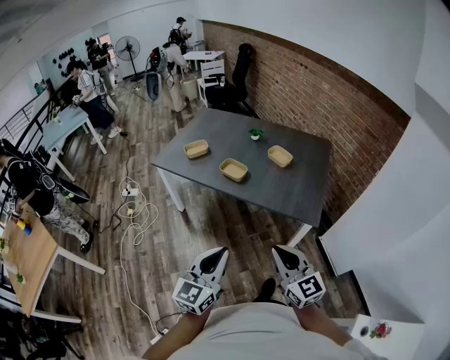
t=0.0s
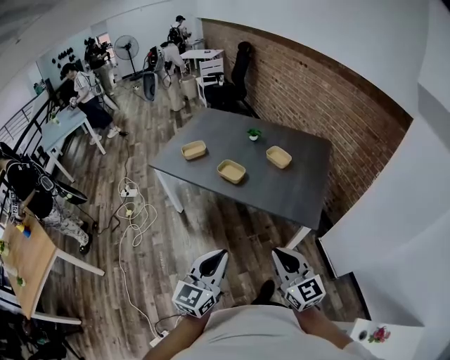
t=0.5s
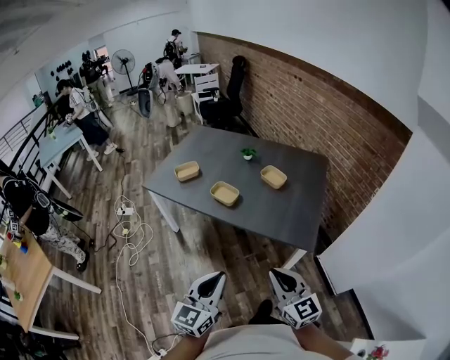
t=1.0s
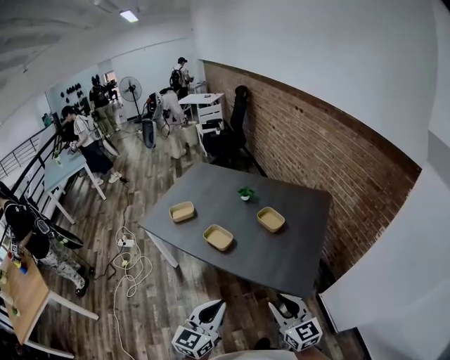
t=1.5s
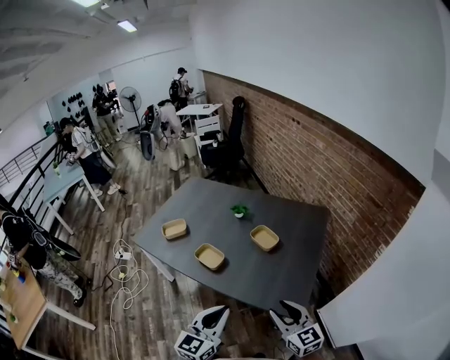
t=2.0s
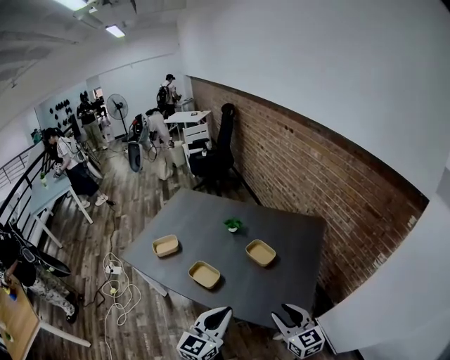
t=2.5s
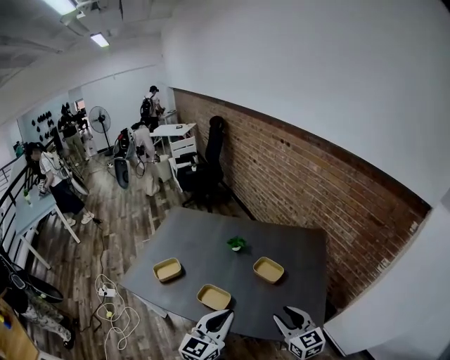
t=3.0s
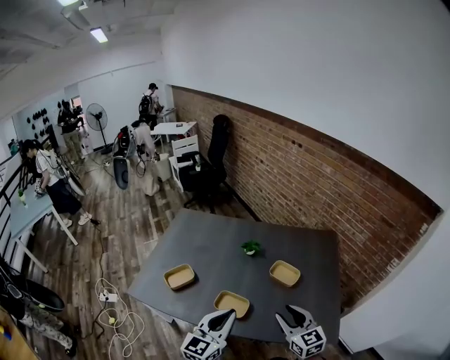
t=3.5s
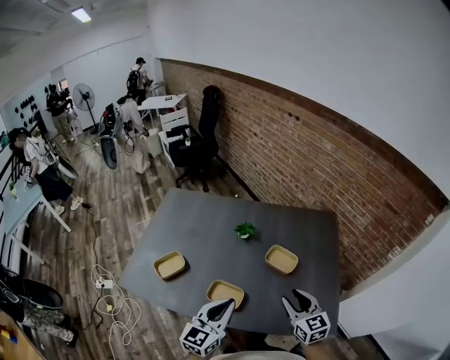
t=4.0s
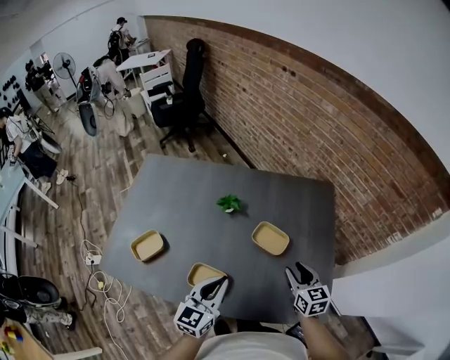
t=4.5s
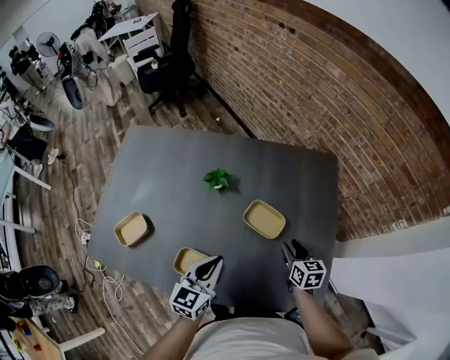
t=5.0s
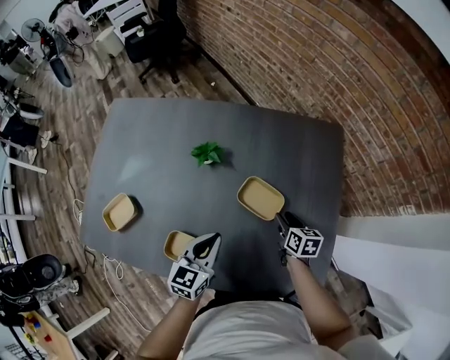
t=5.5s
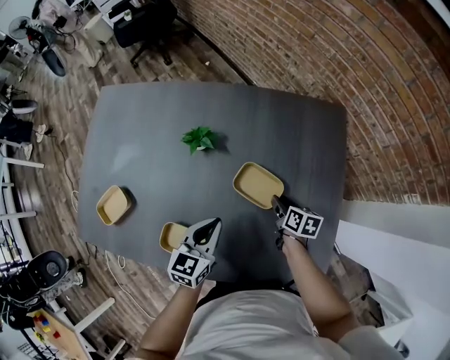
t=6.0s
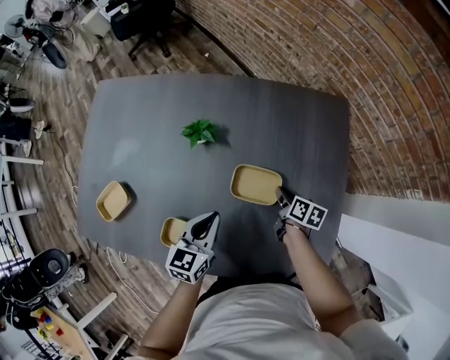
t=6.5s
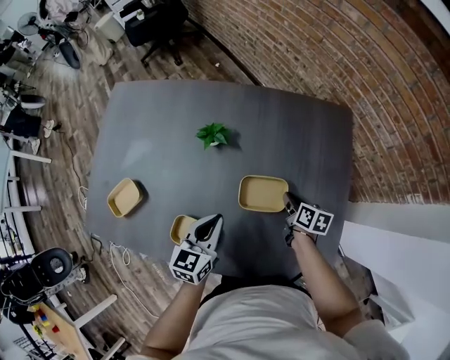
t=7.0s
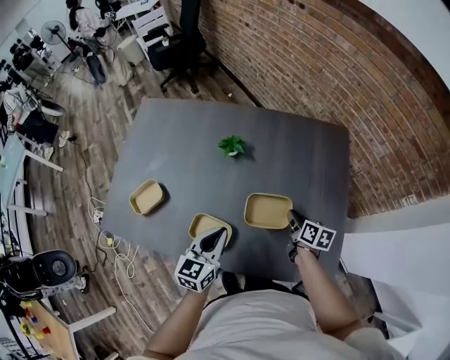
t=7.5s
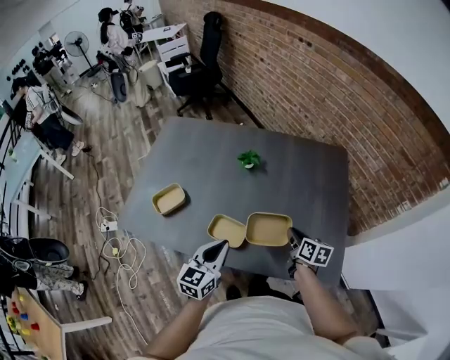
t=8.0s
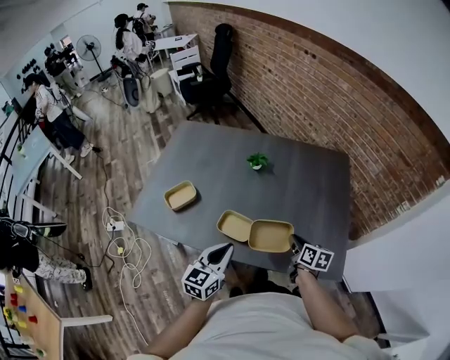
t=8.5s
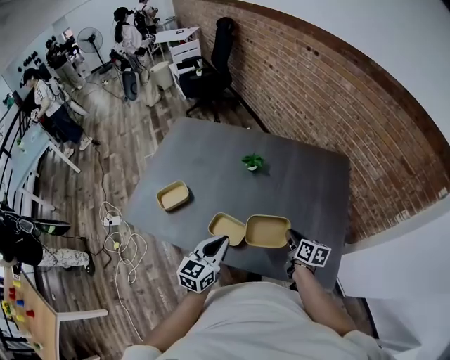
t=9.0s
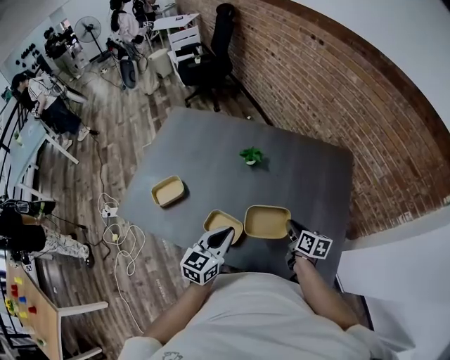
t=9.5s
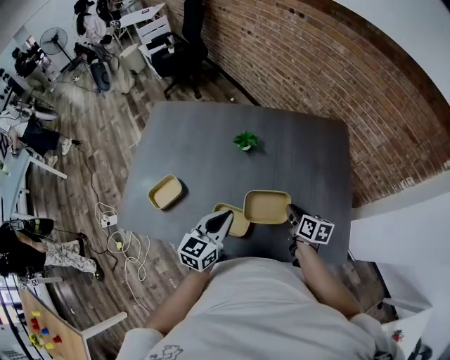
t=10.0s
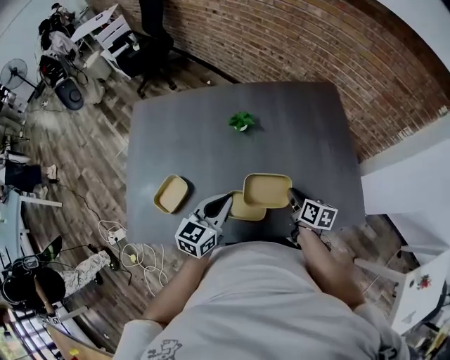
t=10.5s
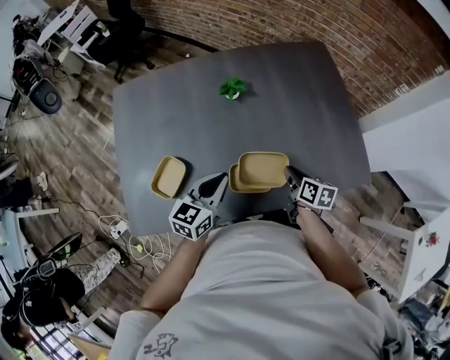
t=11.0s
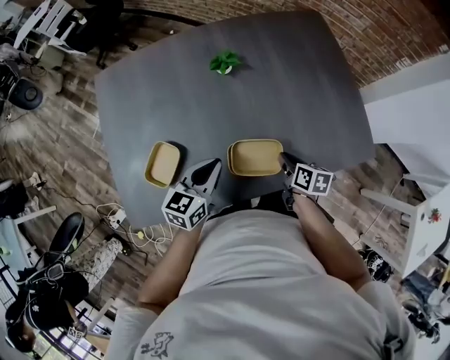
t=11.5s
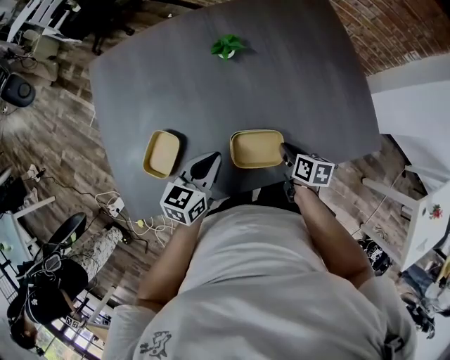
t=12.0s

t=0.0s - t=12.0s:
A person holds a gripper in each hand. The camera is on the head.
t=0.0s - t=2.0s: The two grippers go roughly 30 cm forward and to the right. The right gripper opens.
t=2.0s - t=4.0s: The two grippers go roughly 30 cm forward and to the left. The right gripper changes its angle by about 20 degrees.
t=4.0s - t=6.0s: The left gripper goes about 30 cm downward, forward and to the right, and turns by roughly 20 degrees. Meanwhile the right gripper moves downward and forward, some 35 cm, and rolls clockwise, seen from behind, by about 50 degrees.
t=6.0s - t=8.0s: The left gripper moves backward, to the left and upward, about 25 cm. The right gripper travels backward, upward and to the left by roughly 25 cm, and closes.
t=8.0s - t=10.0s: The left gripper moves forward, roughly 10 cm.
t=10.0s - t=12.0s: The left gripper shifts about 15 cm to the left and downward, and swivels some 30 degrees; the right gripper shifts about 20 cm backward, downward and to the left, and changes its angle by approximately 20 degrees.

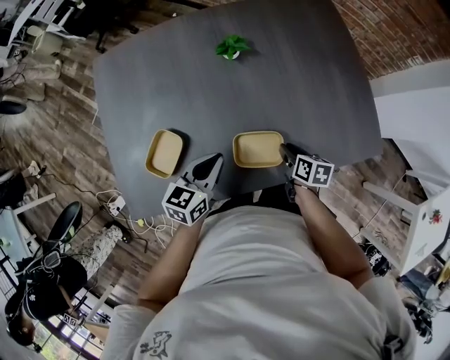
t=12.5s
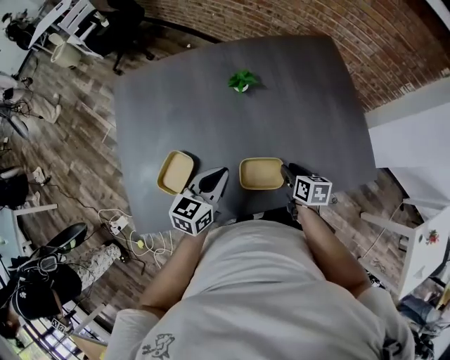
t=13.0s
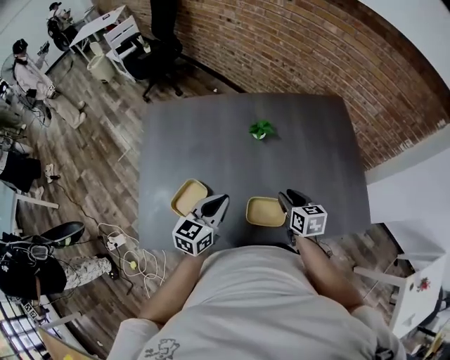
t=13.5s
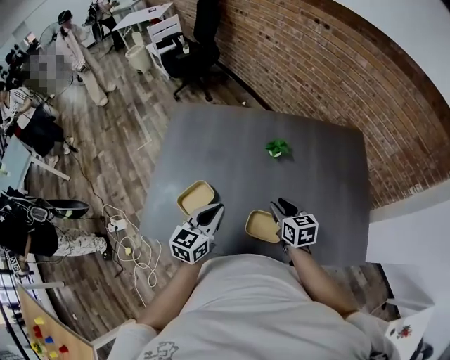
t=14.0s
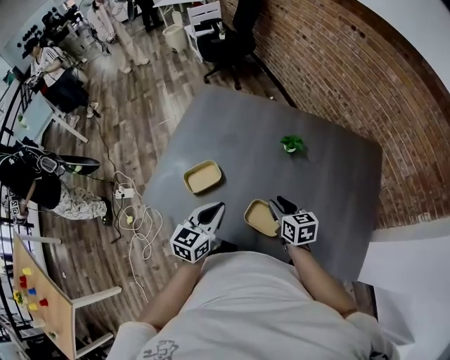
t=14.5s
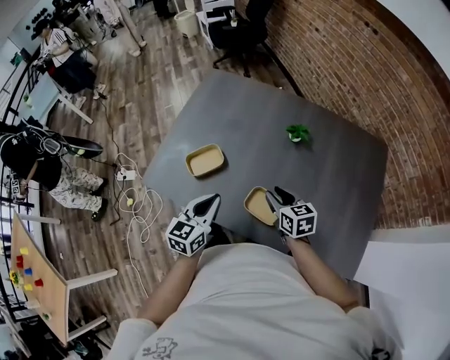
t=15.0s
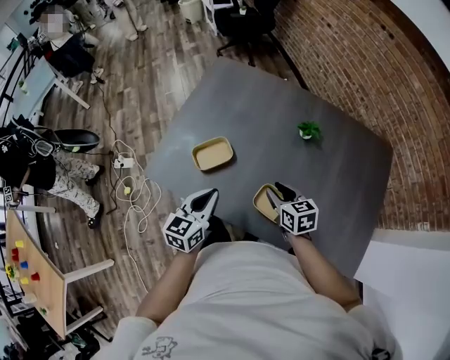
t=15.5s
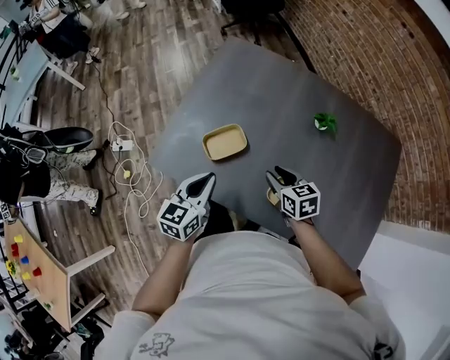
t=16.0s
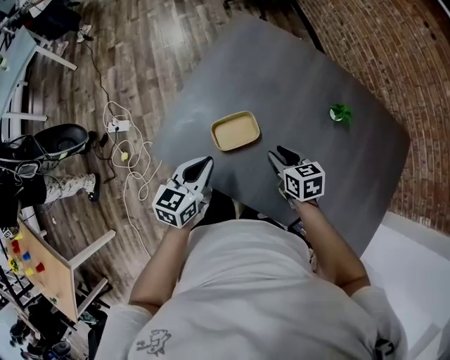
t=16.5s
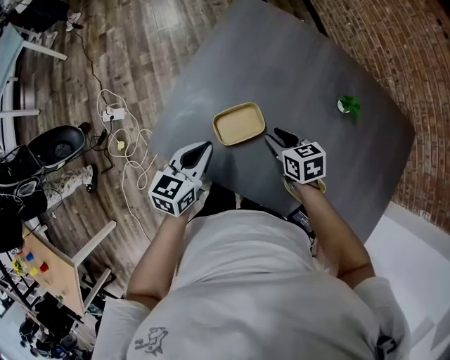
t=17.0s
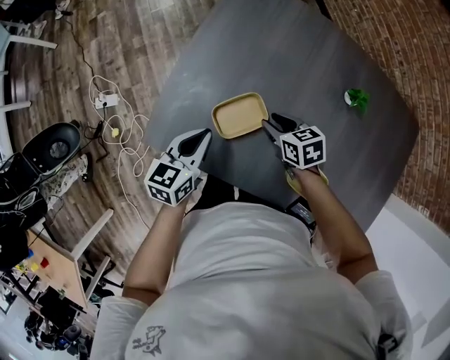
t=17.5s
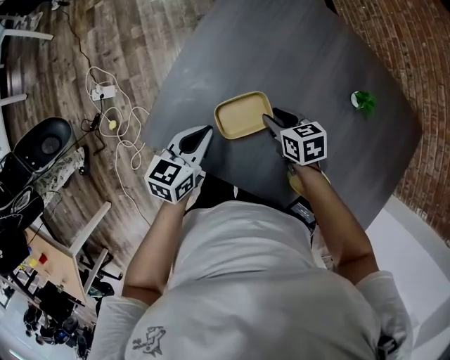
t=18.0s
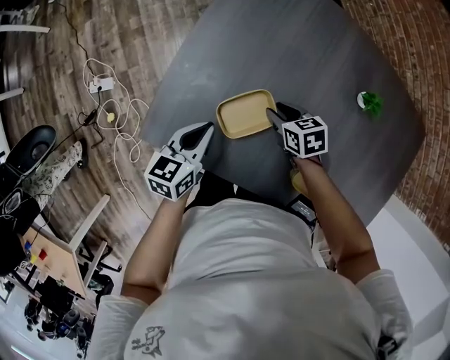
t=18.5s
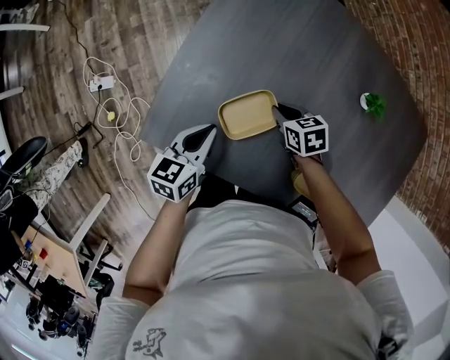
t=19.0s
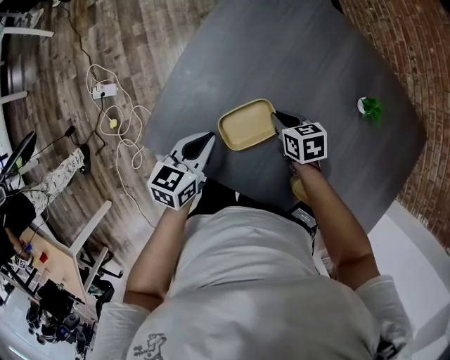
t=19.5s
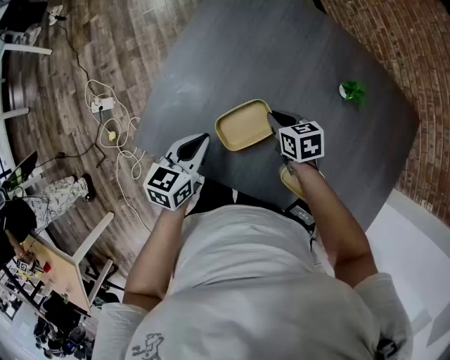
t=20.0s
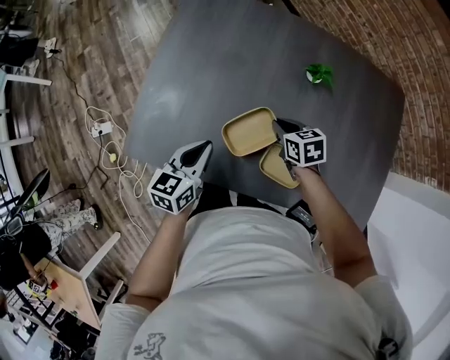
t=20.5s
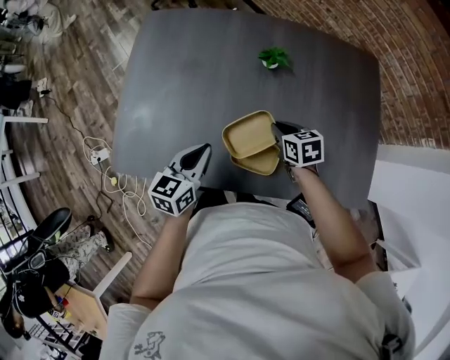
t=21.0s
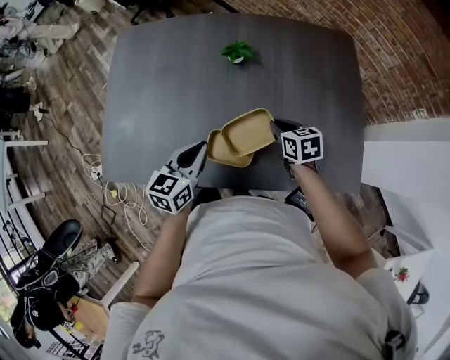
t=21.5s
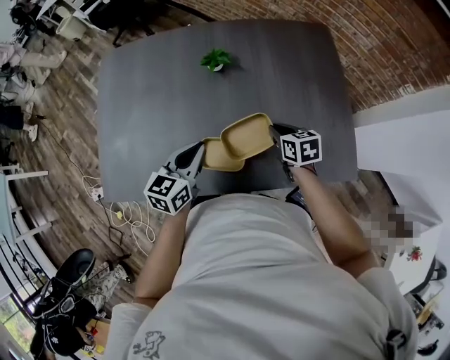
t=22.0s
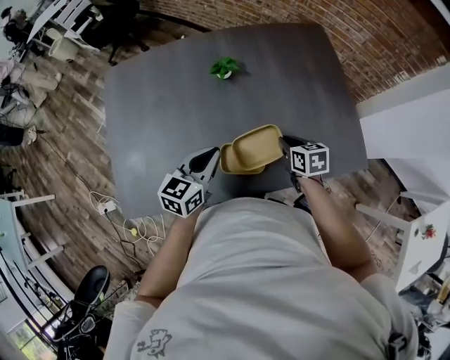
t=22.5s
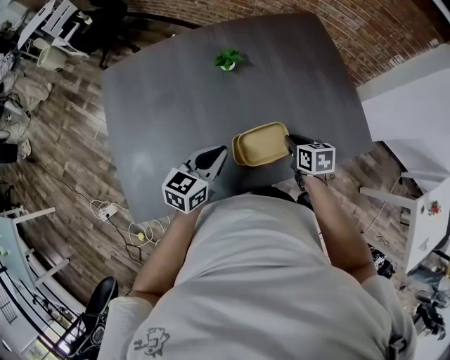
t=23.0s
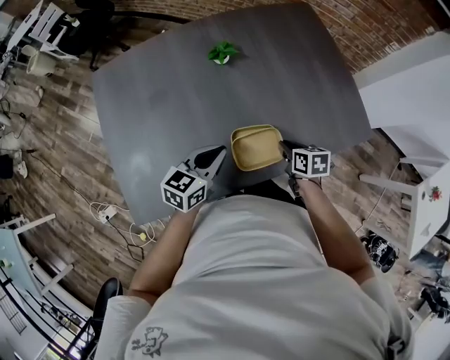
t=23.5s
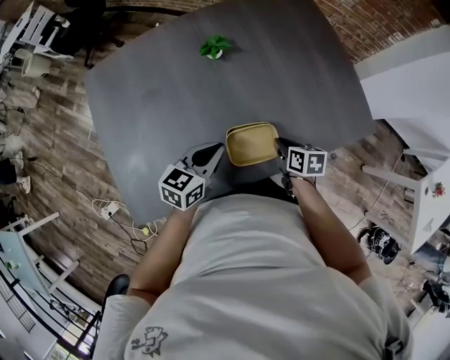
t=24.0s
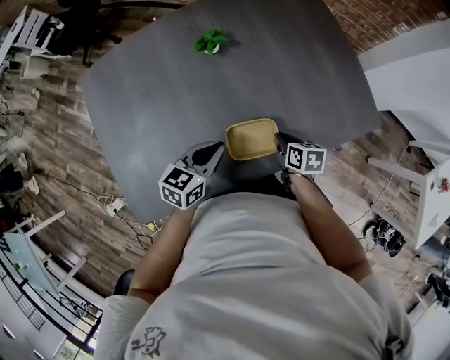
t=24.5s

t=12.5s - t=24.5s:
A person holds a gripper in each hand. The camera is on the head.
t=12.5s - t=14.5s: The grippers both shift upward by roughly 10 cm. The right gripper rolls counterclockwise, seen from behind, by approximately 40 degrees, while the left gripper turns by roughly 40 degrees.
t=14.5s - t=16.5s: The right gripper shifts about 20 cm to the left and forward. The left gripper travels to the left by roughly 20 cm.
t=16.5s - t=18.5s: Both grippers move downward and forward, roughly 15 cm.
t=18.5s - t=20.5s: Both grippers move to the right, backward and upward, approximately 15 cm. The right gripper closes.
t=20.5s - t=22.5s: The left gripper ends up about 20 cm from where it was, and rotates some 30 degrees; the right gripper shifts by roughly 25 cm, and changes its angle by about 30 degrees.
t=22.5s - t=24.5s: The right gripper shifts roughly 10 cm backward and downward, and changes its angle by approximately 20 degrees. Meanwhile the left gripper moves downward, about 5 cm.

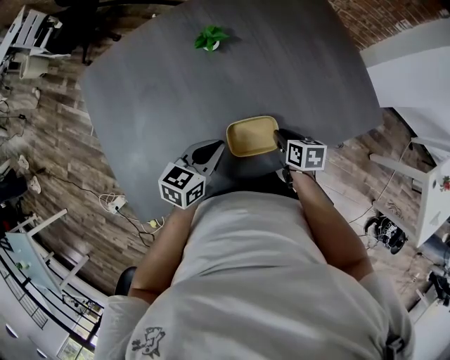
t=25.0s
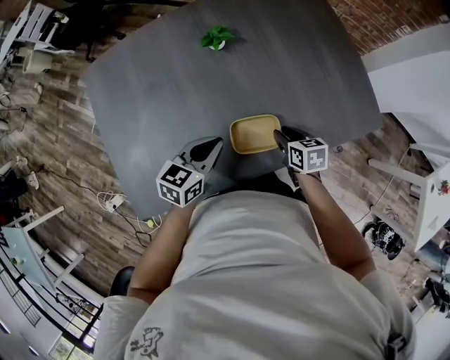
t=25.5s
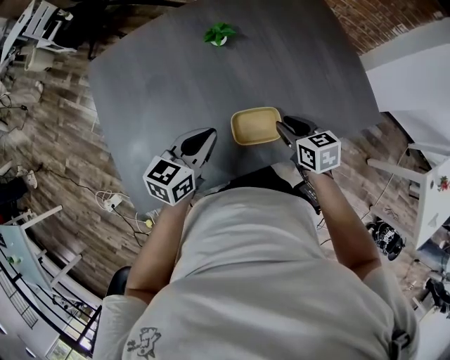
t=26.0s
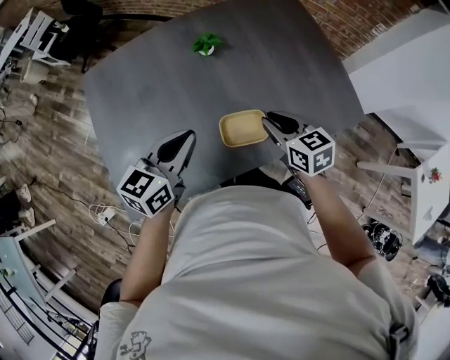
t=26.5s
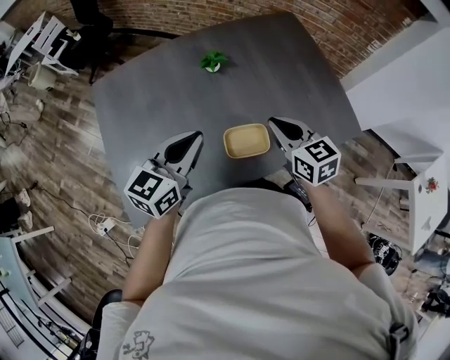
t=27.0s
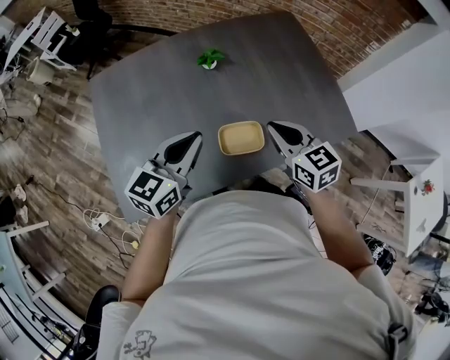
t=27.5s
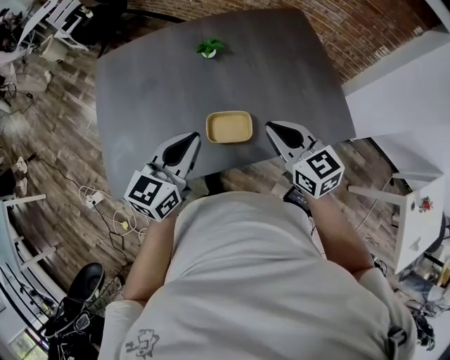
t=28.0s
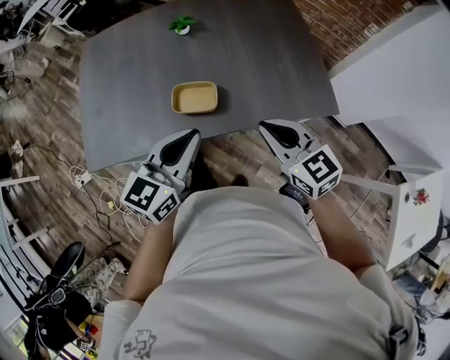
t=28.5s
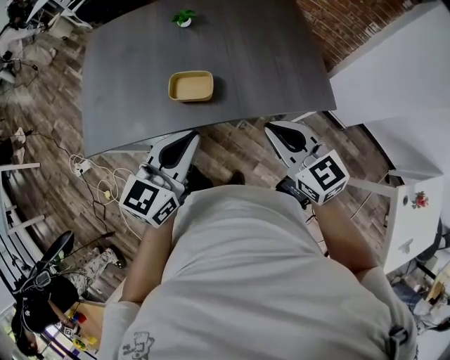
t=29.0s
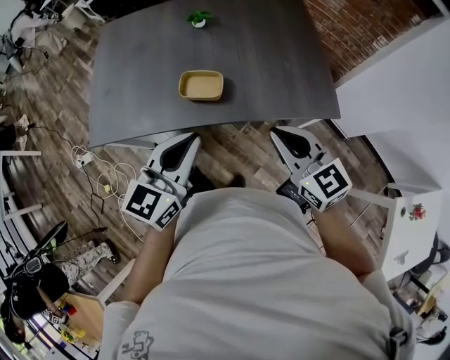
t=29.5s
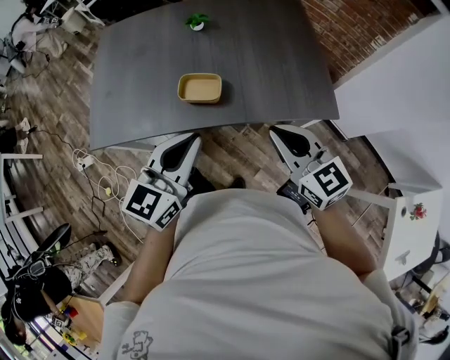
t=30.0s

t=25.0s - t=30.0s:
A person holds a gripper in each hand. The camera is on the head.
t=25.0s - t=27.5s: Both grippers travel together upward, about 20 cm. The right gripper turns by about 50 degrees; the left gripper swivels some 20 degrees.
t=27.5s - t=30.0s: Both grippers travel together backward and to the right, approximately 25 cm. The right gripper changes its angle by approximately 20 degrees.
